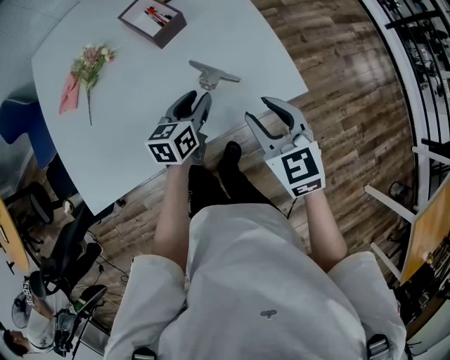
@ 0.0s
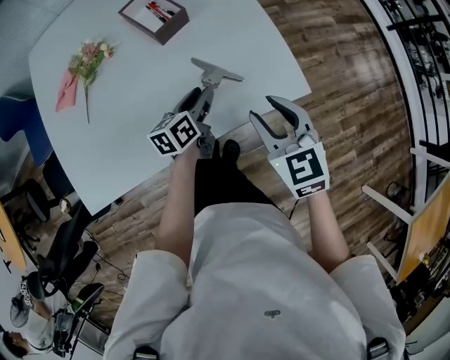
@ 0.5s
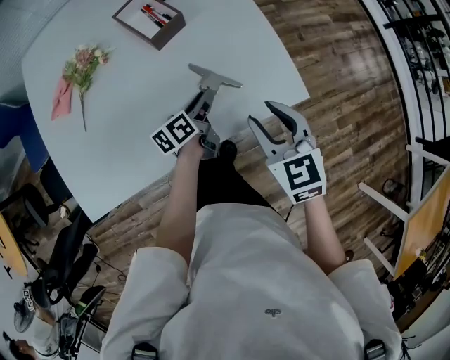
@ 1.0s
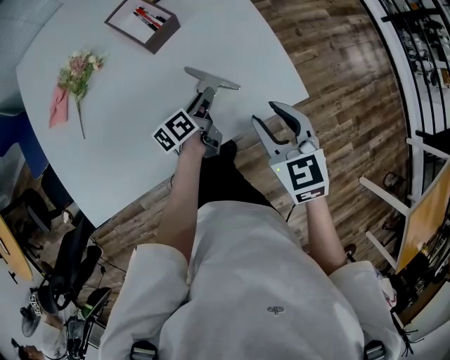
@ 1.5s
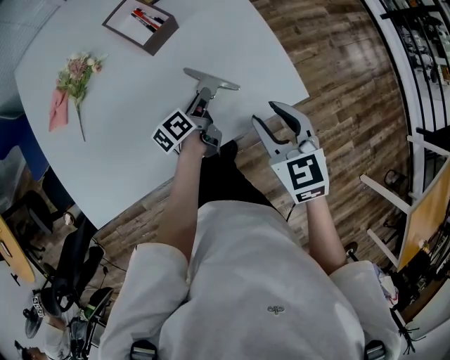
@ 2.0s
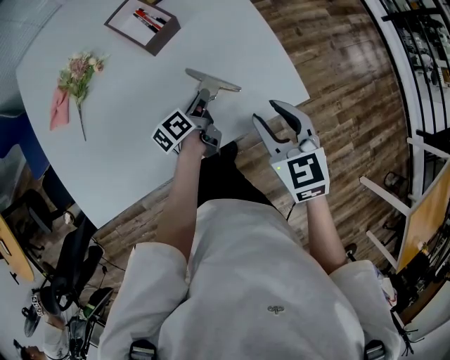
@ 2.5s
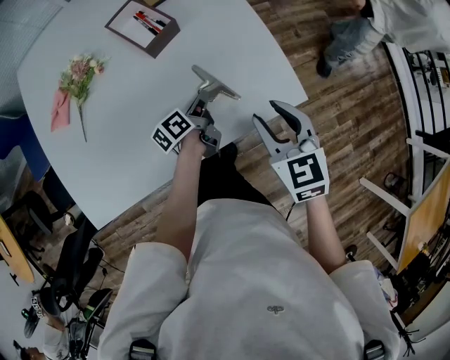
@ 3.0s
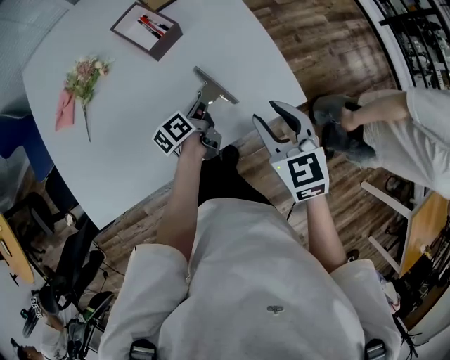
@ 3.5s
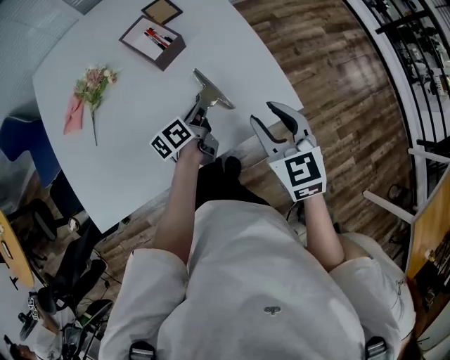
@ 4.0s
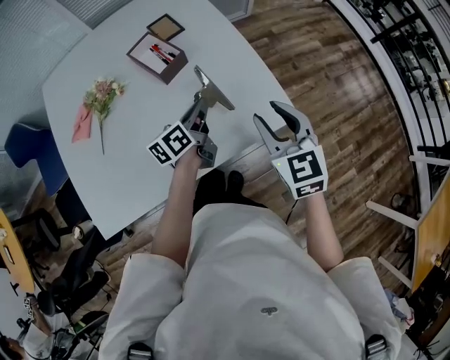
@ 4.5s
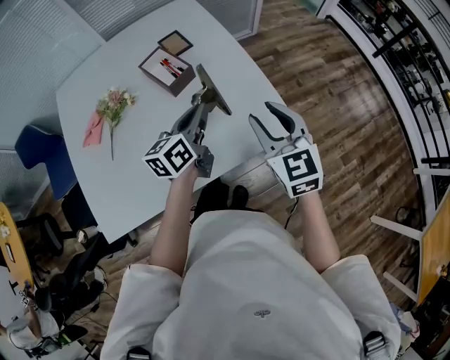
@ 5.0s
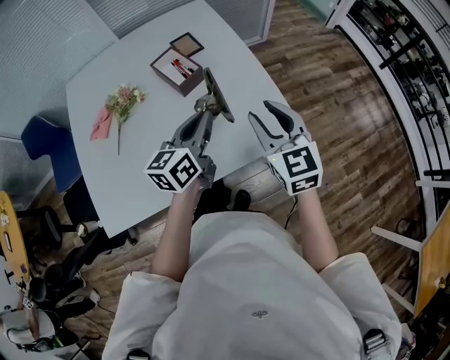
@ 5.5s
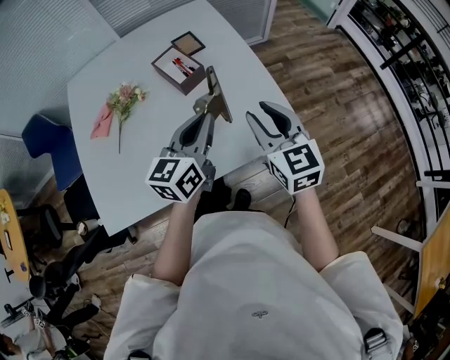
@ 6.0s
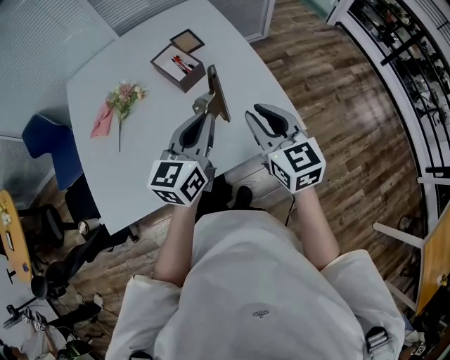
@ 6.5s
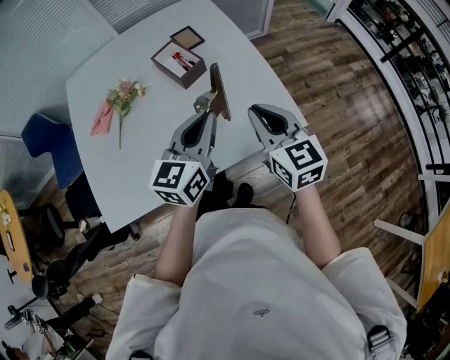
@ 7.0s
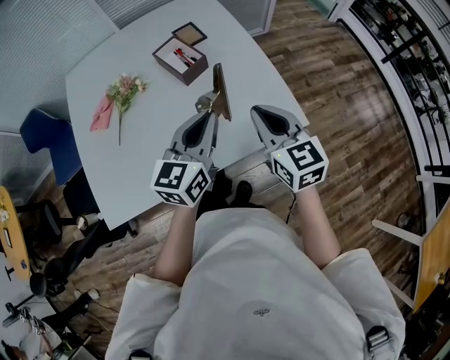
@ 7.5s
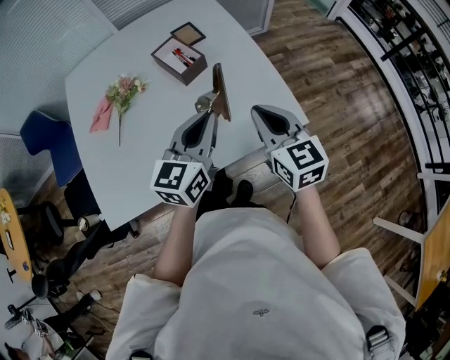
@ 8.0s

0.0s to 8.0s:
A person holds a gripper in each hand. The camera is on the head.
0.0s to 2.0s: The left gripper moves downward and forward, some 10 cm, and rotates around the line of its fingers by about 40 degrees, counterclockwise from behind.
2.0s to 4.0s: The left gripper moves upward, some 5 cm, and closes.
4.0s to 6.0s: The left gripper is displaced upward by about 20 cm, and rolls clockwise, seen from behind, by about 50 degrees. Meanwhile the right gripper is displaced upward by about 5 cm.
6.0s to 8.0s: The right gripper closes its fingers.

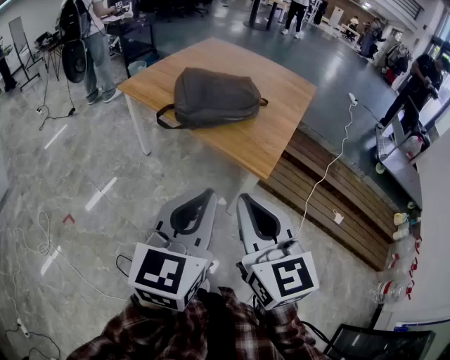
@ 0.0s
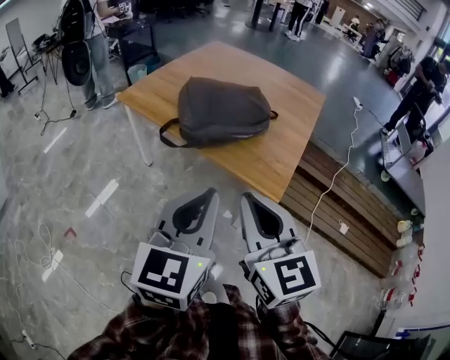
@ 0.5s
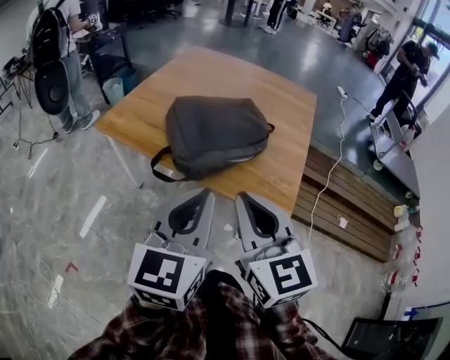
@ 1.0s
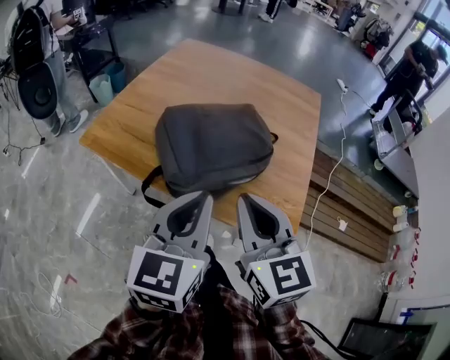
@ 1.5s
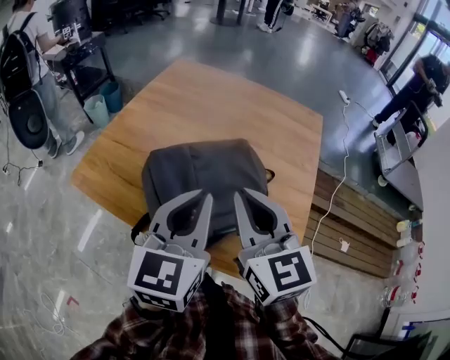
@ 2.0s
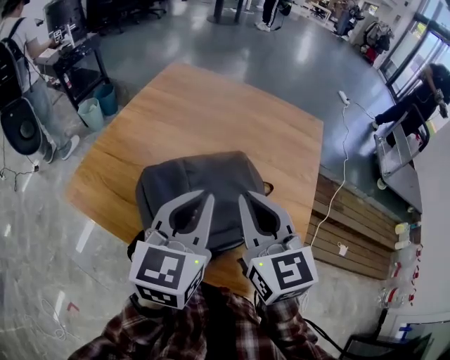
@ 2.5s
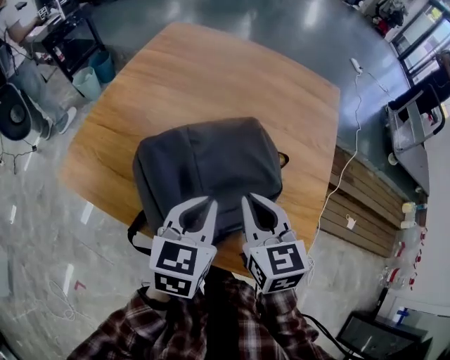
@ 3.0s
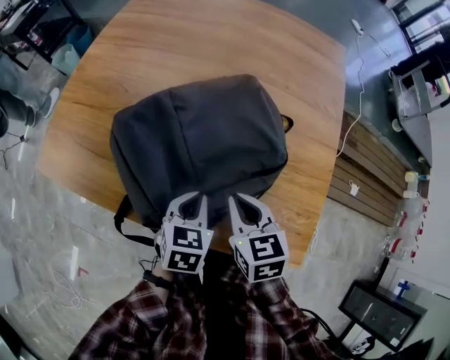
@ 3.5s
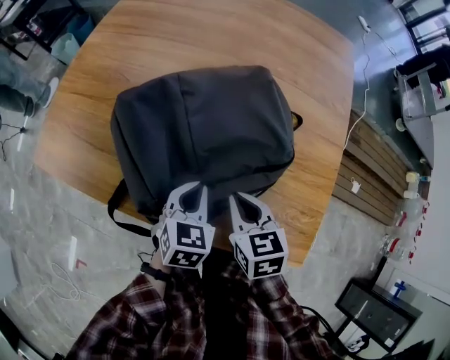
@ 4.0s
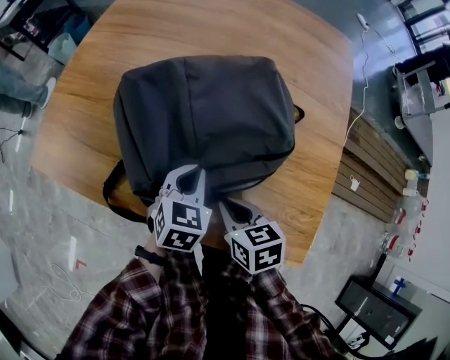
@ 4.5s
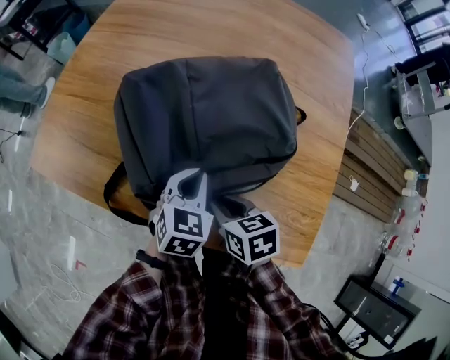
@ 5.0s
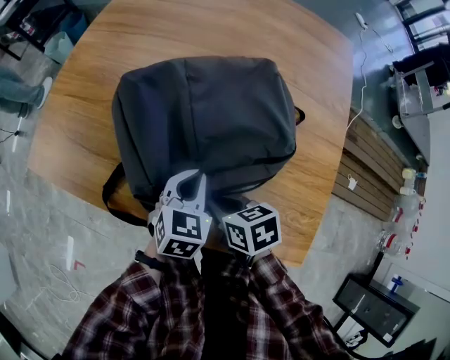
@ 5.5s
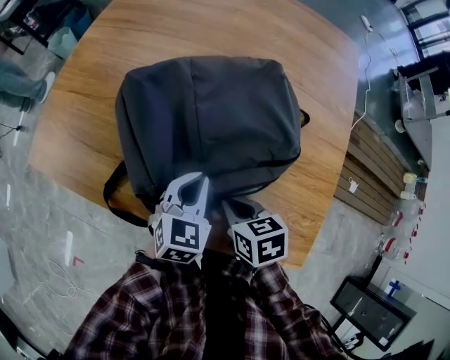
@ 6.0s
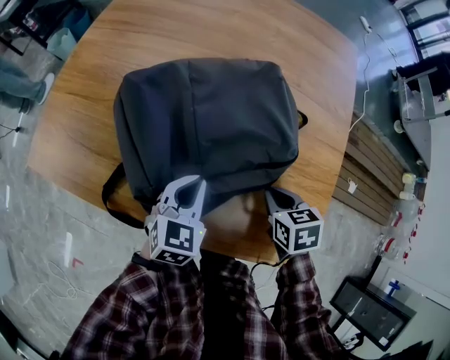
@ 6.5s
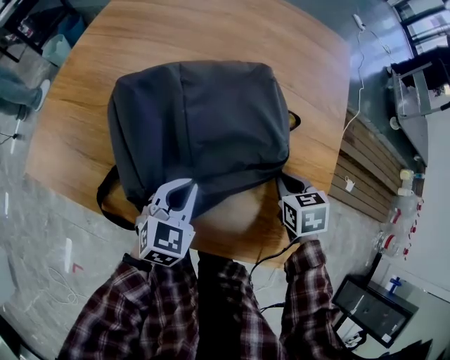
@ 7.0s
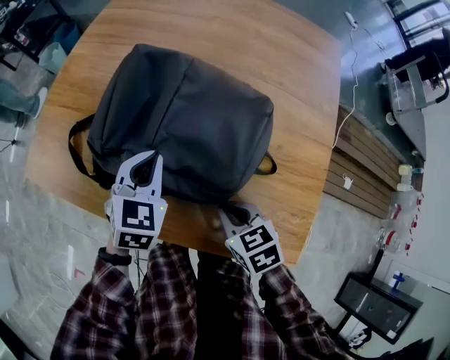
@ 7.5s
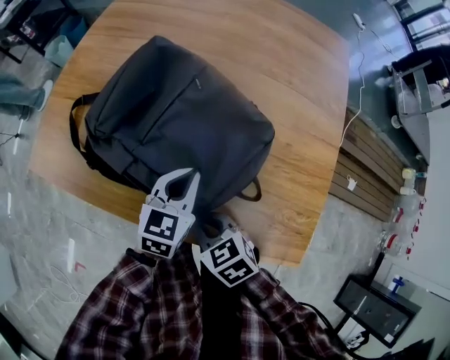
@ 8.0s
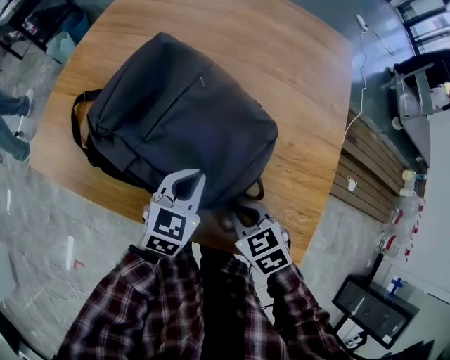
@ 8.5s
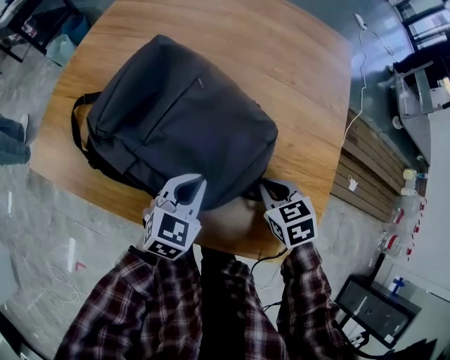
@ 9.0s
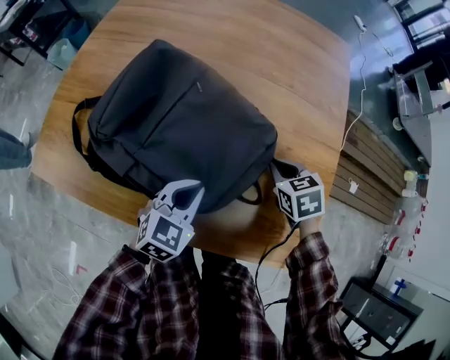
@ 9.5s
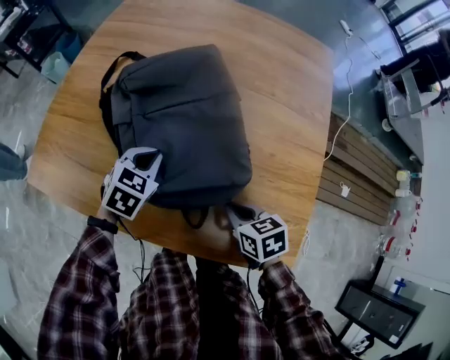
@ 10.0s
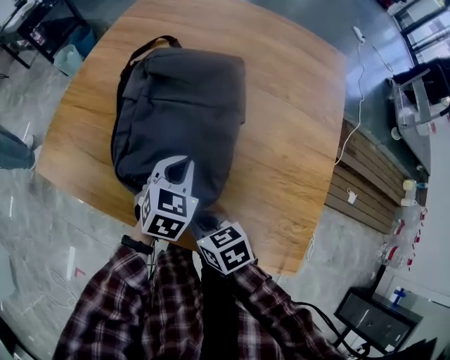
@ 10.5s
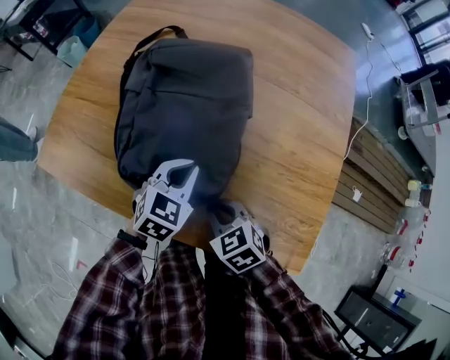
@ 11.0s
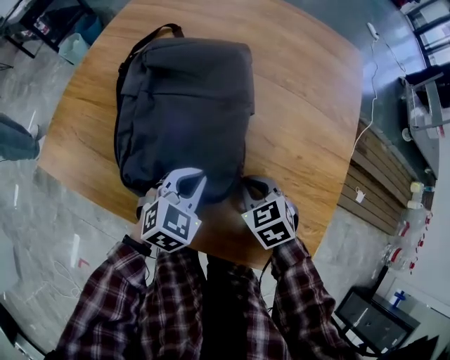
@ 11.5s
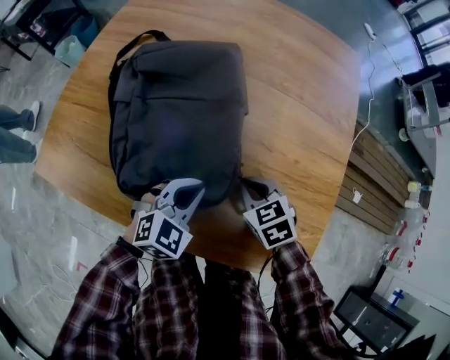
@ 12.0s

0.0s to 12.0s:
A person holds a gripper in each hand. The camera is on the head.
0.0s to 2.0s: Both grippers are carried forward, approximately 50 cm.
2.0s to 4.0s: The two grippers go about 30 cm downward. The left gripper points its fingers approximately 40 degrees further downward. The right gripper angles its fingers downward, by about 40 degrees.
6.0s to 8.0s: The right gripper goes to the right and returns, about 15 cm each way, and rotates roughly 20 degrees.
8.0s to 10.0s: The left gripper moves forward and to the left, about 10 cm, and turns by some 20 degrees. The right gripper heads to the right and forward, covering about 15 cm, and changes its angle by some 20 degrees.
10.0s to 12.0s: The right gripper heads forward, covering about 10 cm, reaches some 15 cm to the left, then returns, and swivels some 20 degrees, while the left gripper moves backward and to the right, some 10 cm, and turns by approximately 20 degrees.

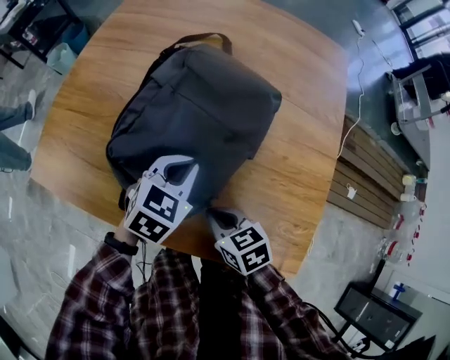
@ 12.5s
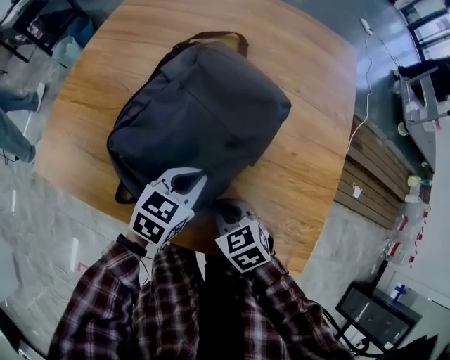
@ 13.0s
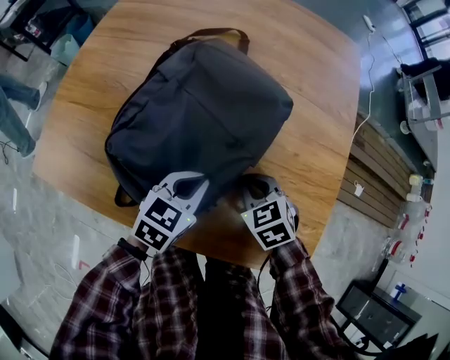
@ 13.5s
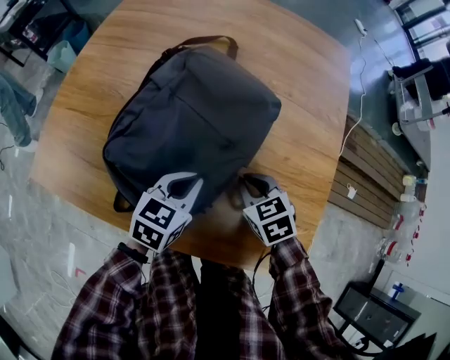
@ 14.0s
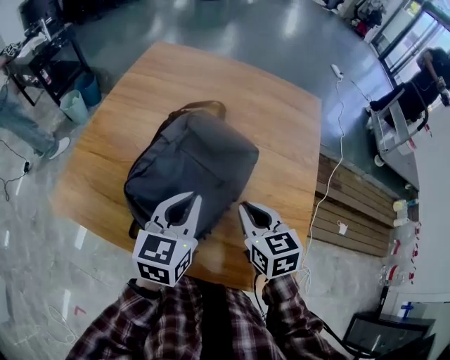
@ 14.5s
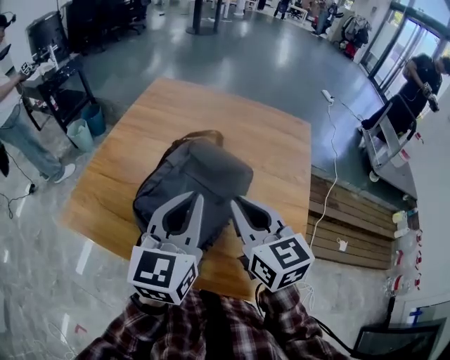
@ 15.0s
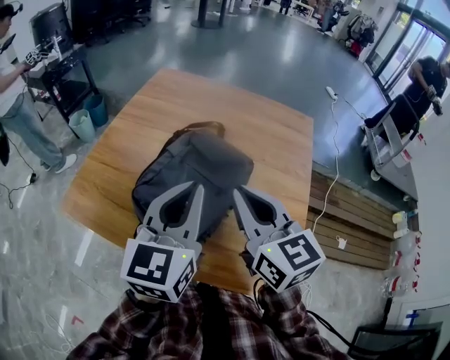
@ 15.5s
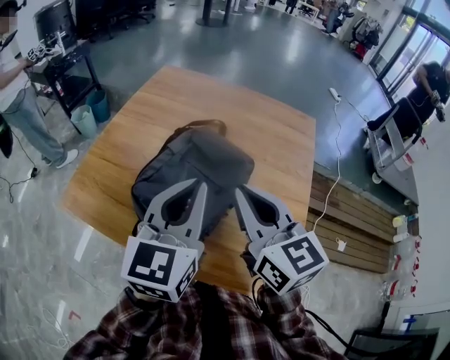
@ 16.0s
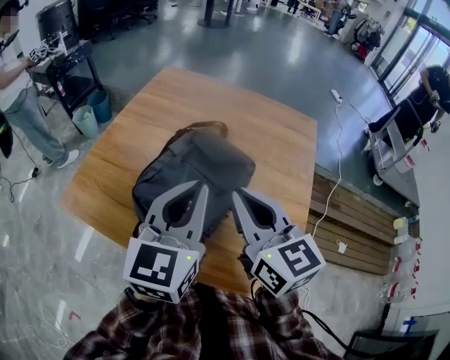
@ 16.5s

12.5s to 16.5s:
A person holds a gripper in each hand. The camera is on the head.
12.5s to 14.5s: The left gripper is displaced upward by about 15 cm, and turns by about 30 degrees. Meanwhile the right gripper moves upward, forward and to the right, approximately 20 cm, and changes its angle by some 30 degrees.
14.5s to 16.5s: Both grippers move upward, some 15 cm. The right gripper rotates roughly 30 degrees.

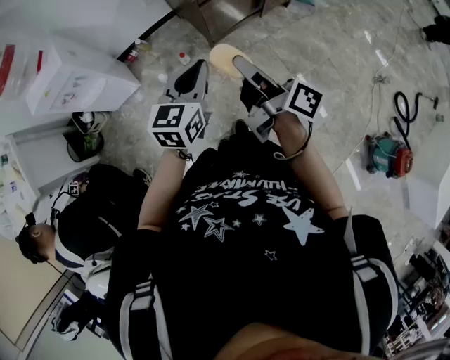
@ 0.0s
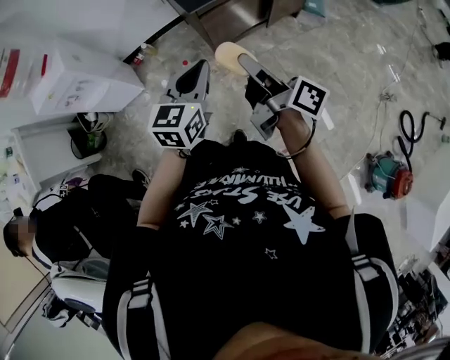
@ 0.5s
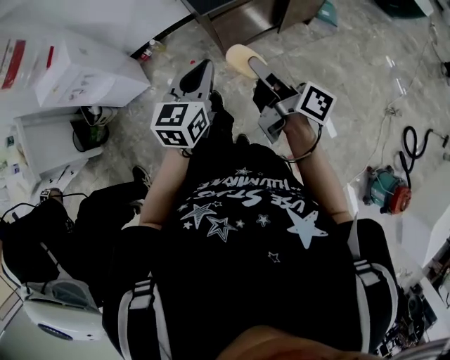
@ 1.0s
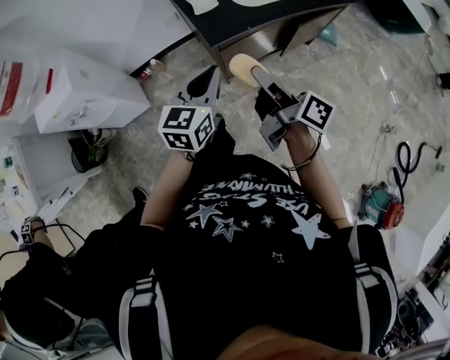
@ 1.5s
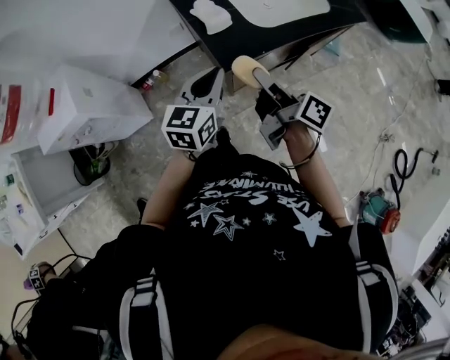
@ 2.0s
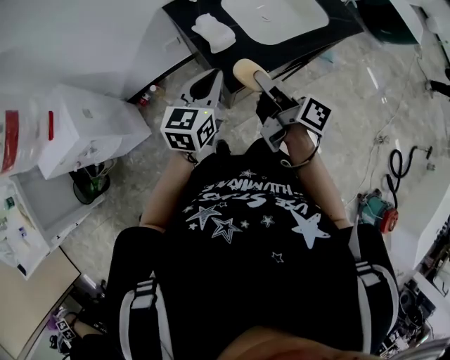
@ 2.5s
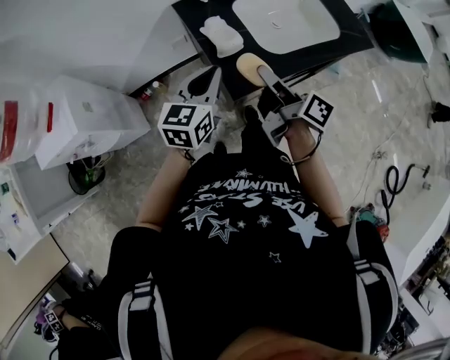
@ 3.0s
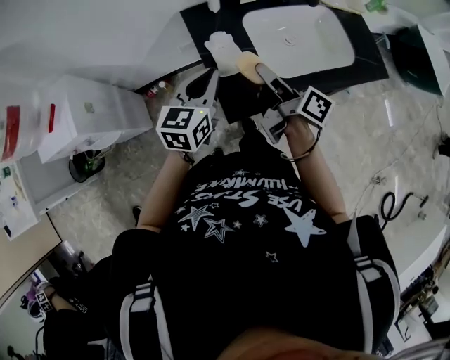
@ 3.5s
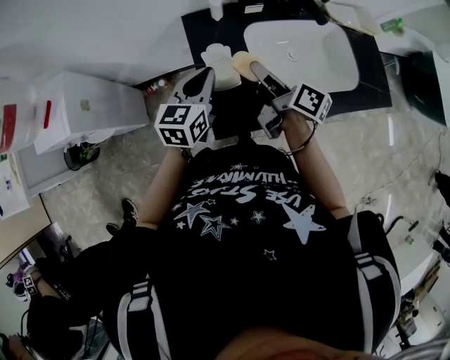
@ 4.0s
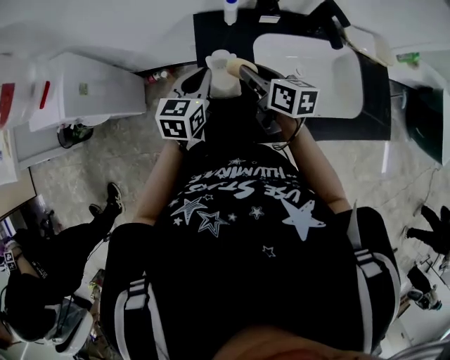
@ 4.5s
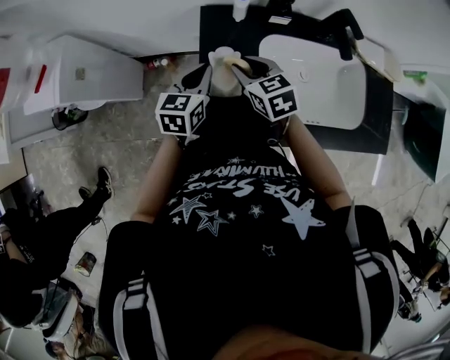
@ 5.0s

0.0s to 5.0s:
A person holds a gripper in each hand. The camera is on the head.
0.0s to 2.5s: Both grippers move forward, roughly 35 cm.
2.5s to 5.0s: The left gripper ends up about 20 cm from where it was, and changes its angle by roughly 30 degrees; the right gripper ends up roughly 30 cm from where it was, and rotates around the line of its fingers by some 70 degrees, counterclockwise from behind.
